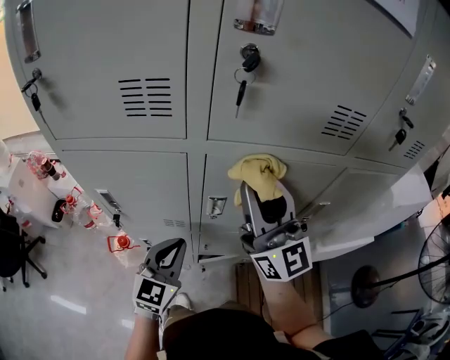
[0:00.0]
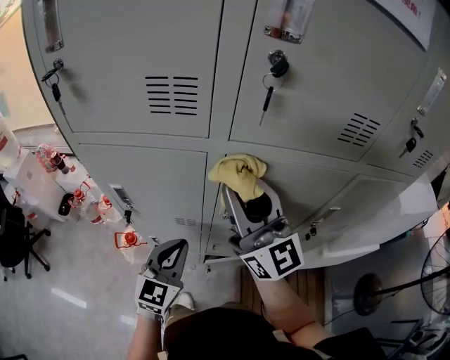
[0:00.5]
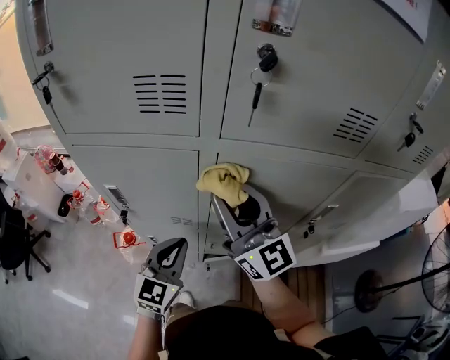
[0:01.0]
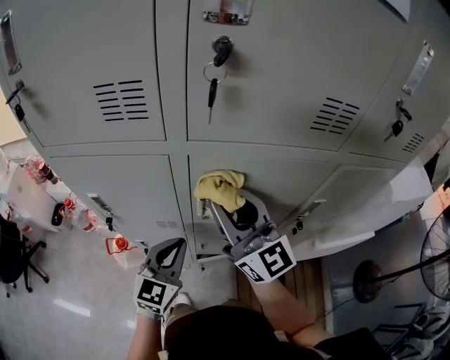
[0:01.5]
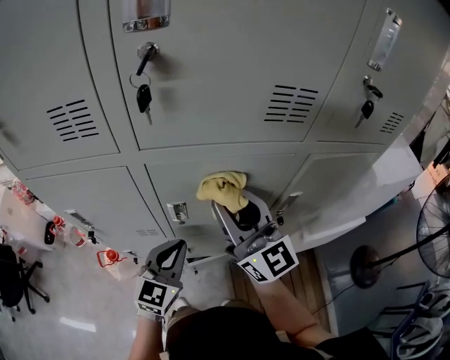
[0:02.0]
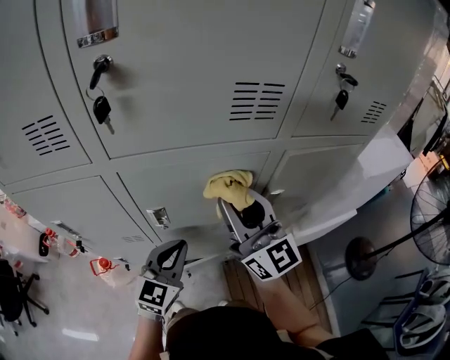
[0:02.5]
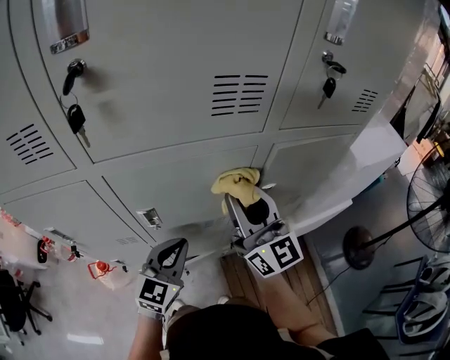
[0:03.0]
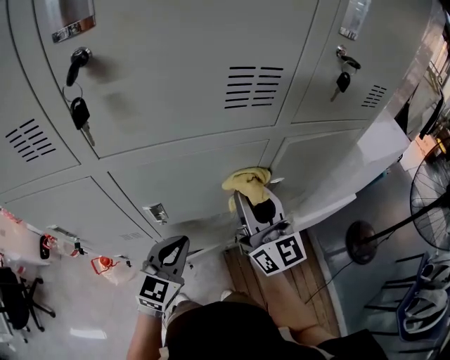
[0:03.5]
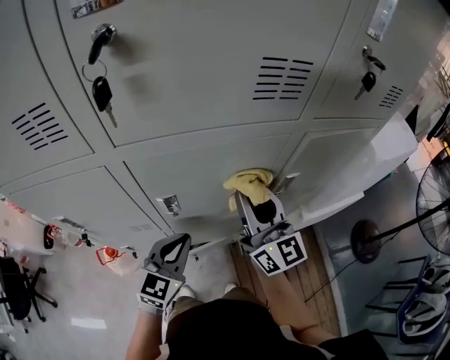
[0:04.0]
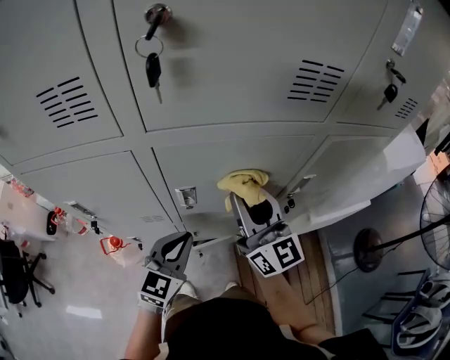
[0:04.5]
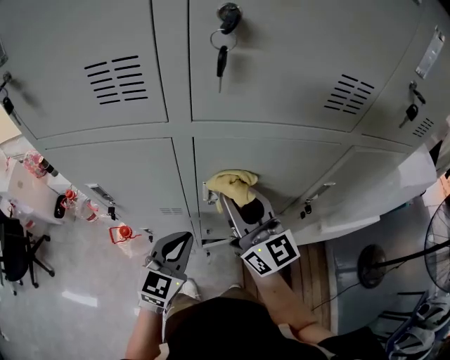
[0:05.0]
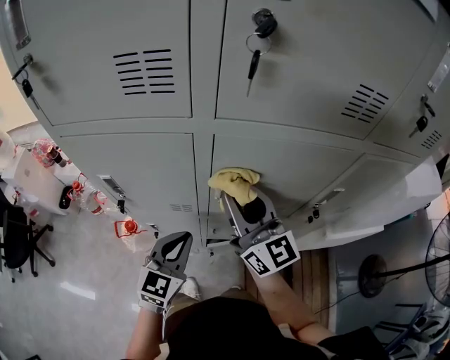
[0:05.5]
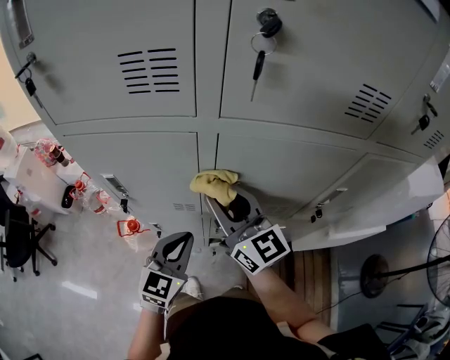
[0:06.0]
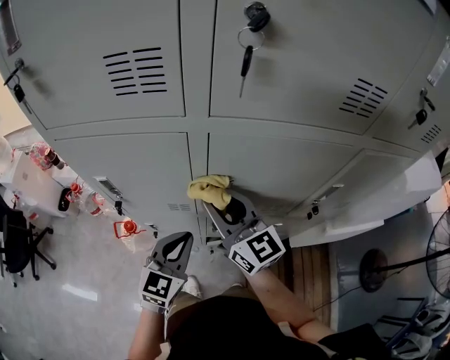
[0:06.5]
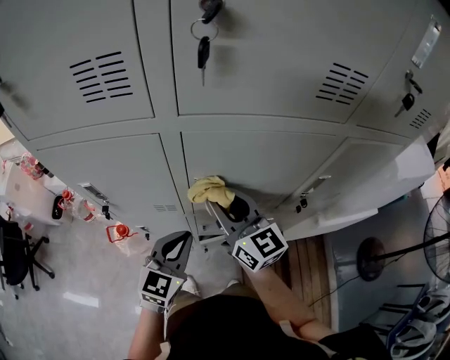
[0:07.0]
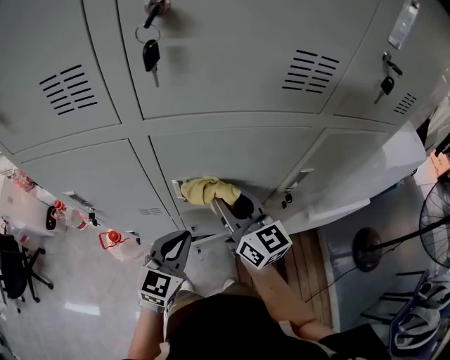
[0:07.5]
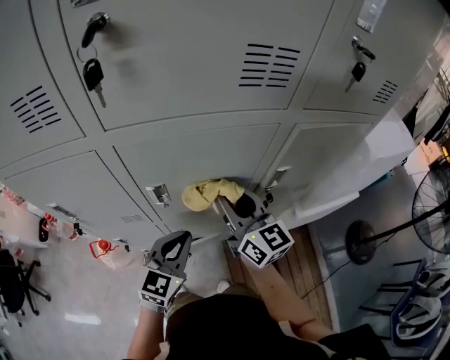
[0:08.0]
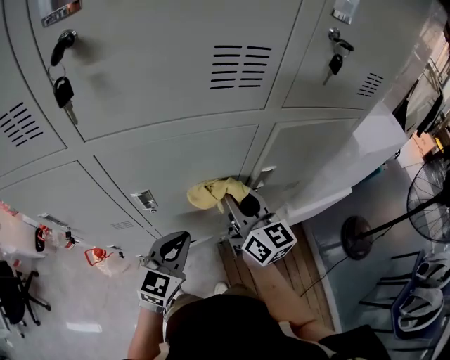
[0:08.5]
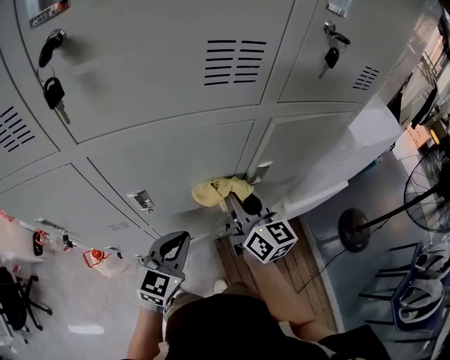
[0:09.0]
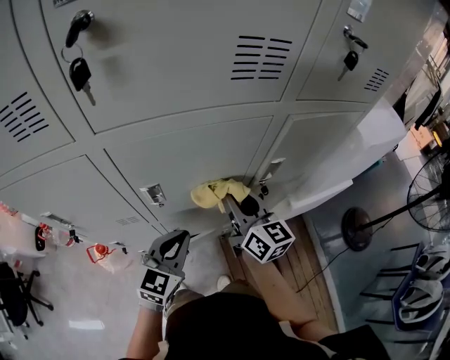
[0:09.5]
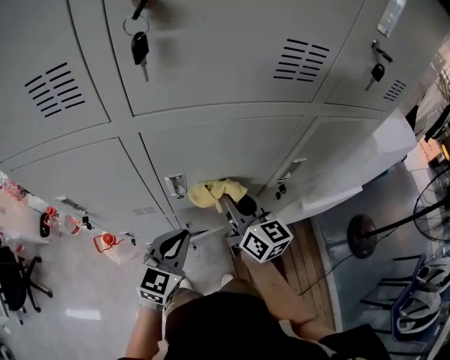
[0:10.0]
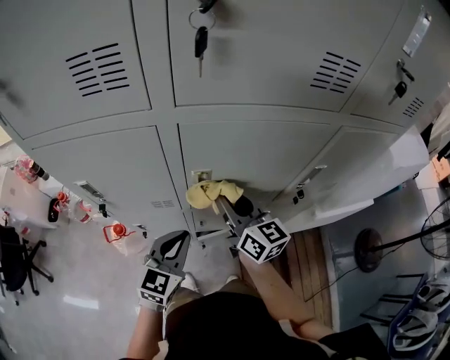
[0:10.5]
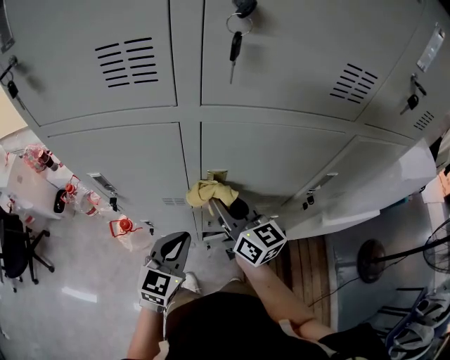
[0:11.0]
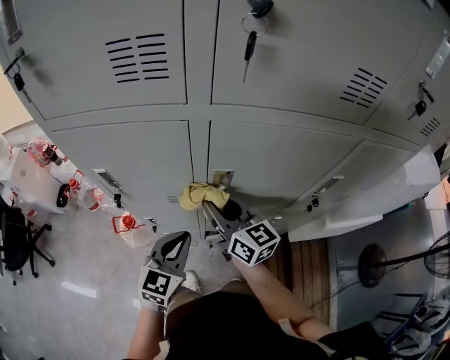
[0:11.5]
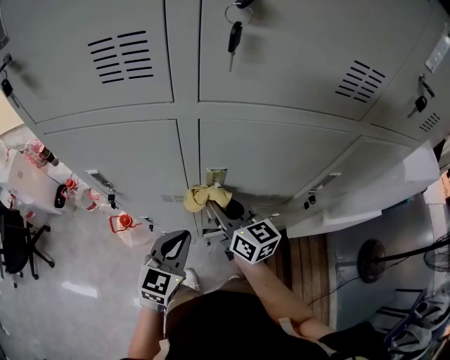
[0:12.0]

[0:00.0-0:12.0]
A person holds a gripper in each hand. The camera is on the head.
0:00.0 to 0:02.0: The right gripper heads downward, covering approximately 5 cm, and goes to the left and returns, some 5 cm each way. Meanwhile the left gripper shifts approximately 10 cm to the right.
0:02.0 to 0:04.0: The right gripper heads to the right and downward, covering approximately 10 cm.
0:04.0 to 0:06.0: The left gripper goes some 10 cm to the left; the right gripper is displaced to the left by roughly 20 cm, and changes its angle by some 30 degrees.
0:06.0 to 0:08.0: Both grippers travel together to the right, roughly 15 cm.
0:08.0 to 0:10.0: The right gripper reaches roughly 5 cm to the right, then returns. Meanwhile the left gripper ends up some 5 cm from where it was.
0:10.0 to 0:12.0: The left gripper heads to the left, covering some 5 cm. The right gripper travels to the left by roughly 10 cm.

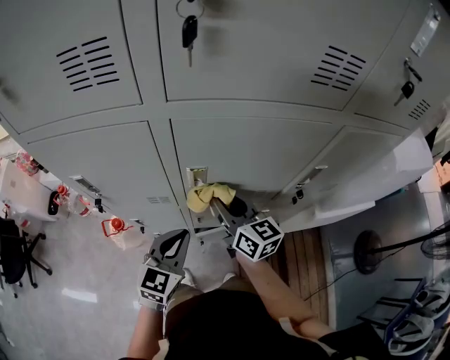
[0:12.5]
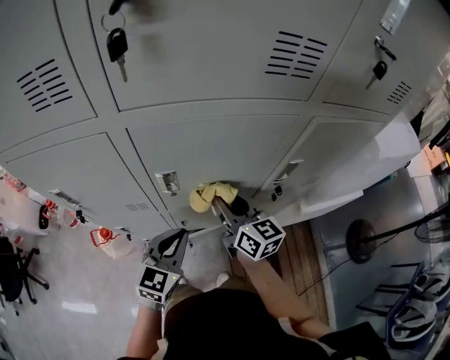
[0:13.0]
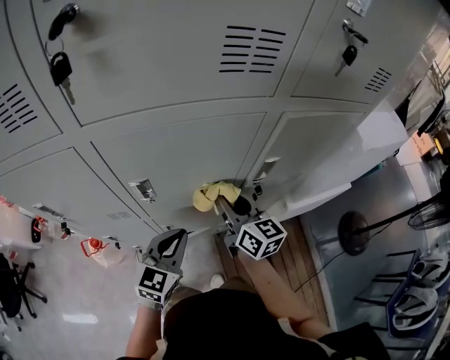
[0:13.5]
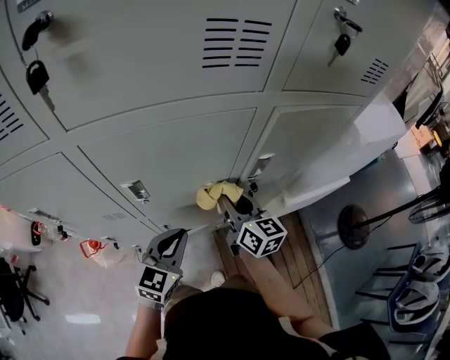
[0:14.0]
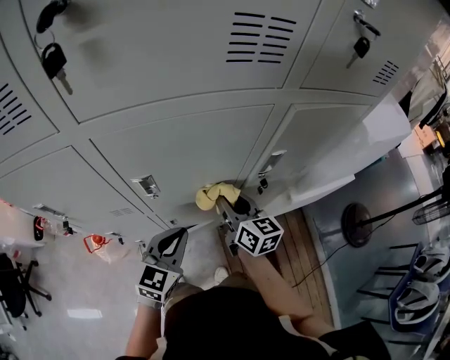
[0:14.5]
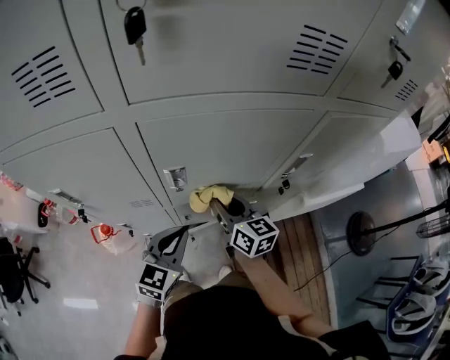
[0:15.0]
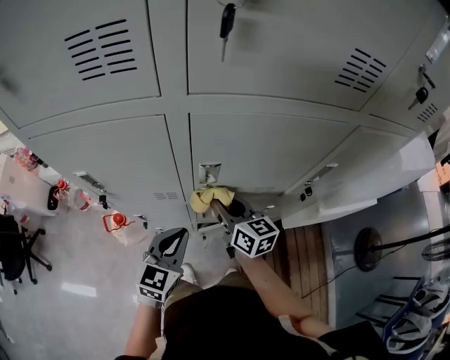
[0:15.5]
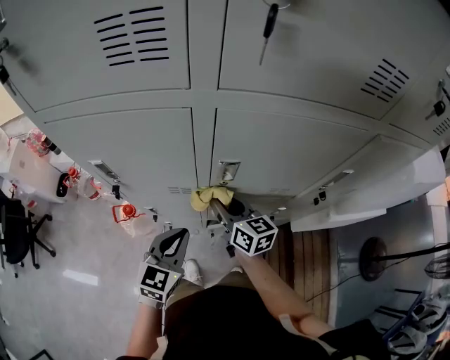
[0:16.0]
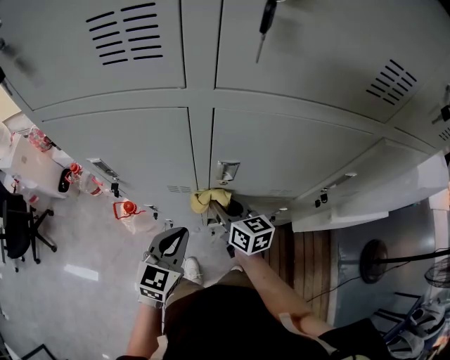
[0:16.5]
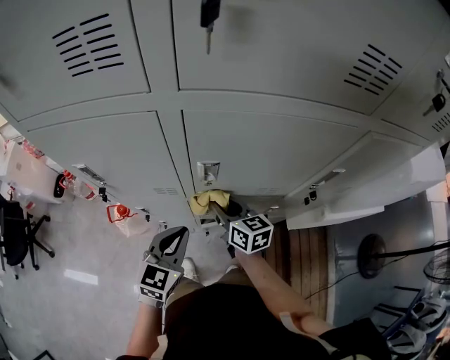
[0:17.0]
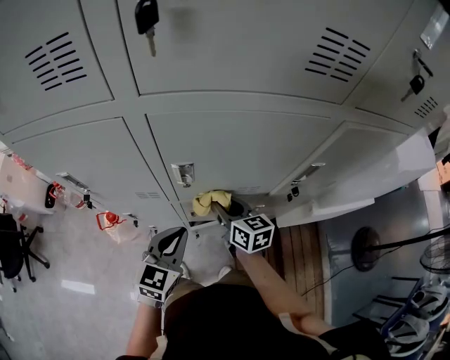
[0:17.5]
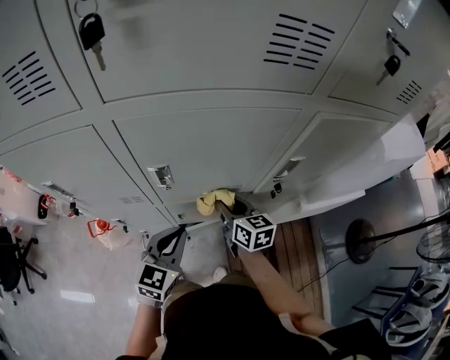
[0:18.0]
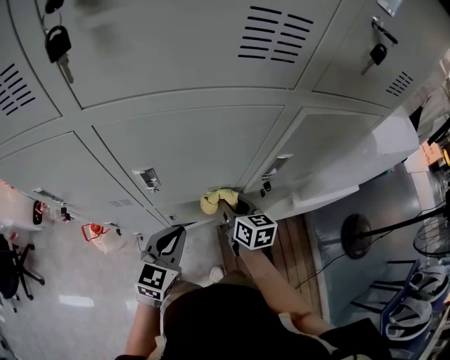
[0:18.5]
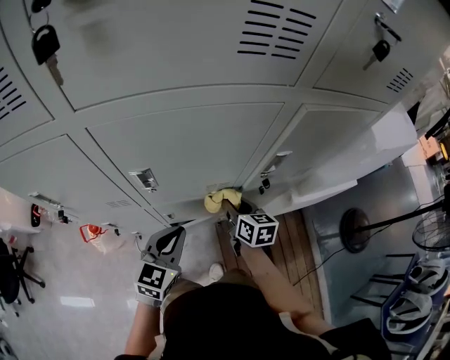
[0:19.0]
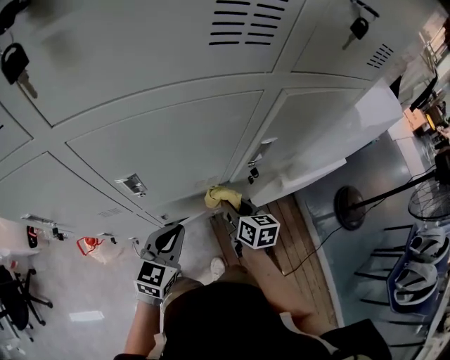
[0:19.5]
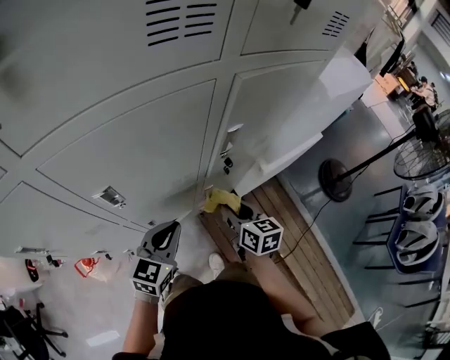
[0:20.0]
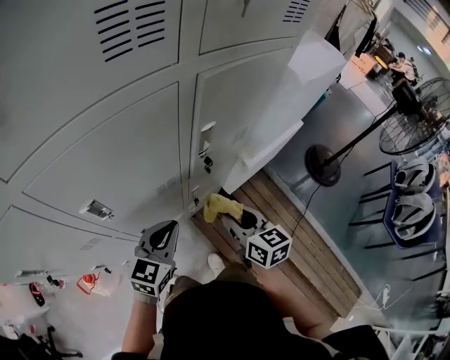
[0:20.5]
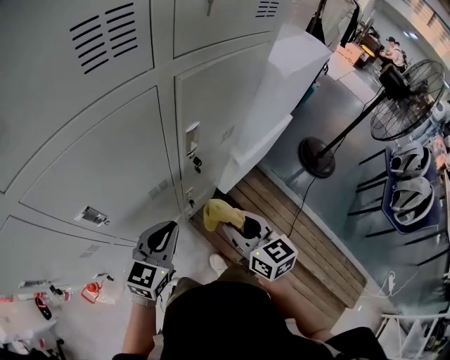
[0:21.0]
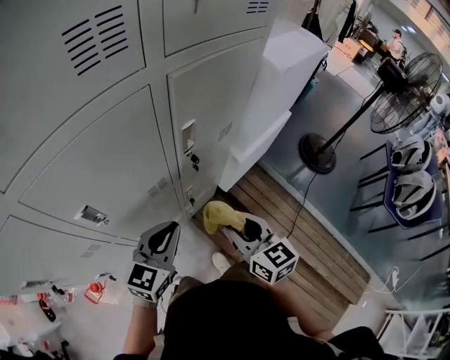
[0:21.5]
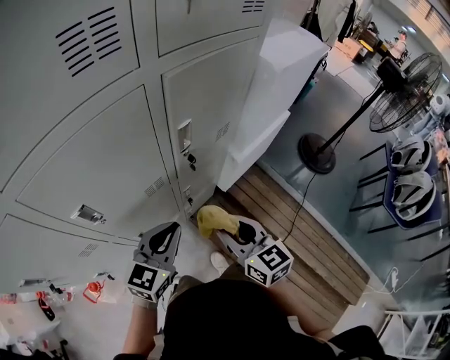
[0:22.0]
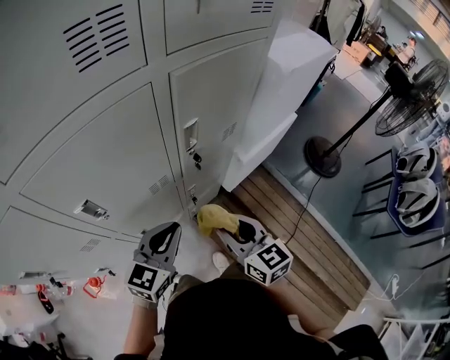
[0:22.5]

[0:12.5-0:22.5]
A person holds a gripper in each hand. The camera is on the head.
0:12.5 to 0:14.5: The grippers both shift to the right by some 10 cm.
0:14.5 to 0:16.5: The grippers both shift to the left by approximately 20 cm. The right gripper changes its angle by roughly 20 degrees.
0:16.5 to 0:18.5: Both grippers travel together to the right, roughly 20 cm.
0:18.5 to 0:20.5: The left gripper is displaced to the right by approximately 5 cm, and rotates roughly 30 degrees. The right gripper travels to the right and backward by roughly 15 cm, and swivels about 20 degrees.
0:20.5 to 0:22.5: The right gripper goes approximately 5 cm backward. The left gripper ends up some 5 cm from where it was.

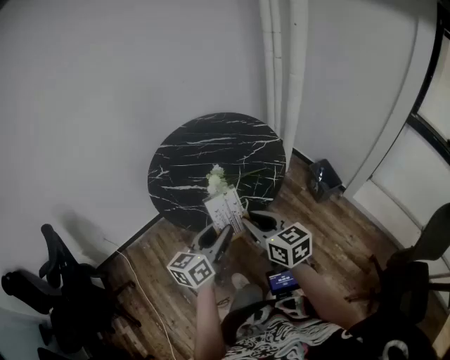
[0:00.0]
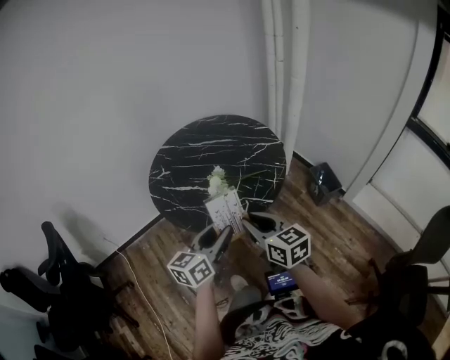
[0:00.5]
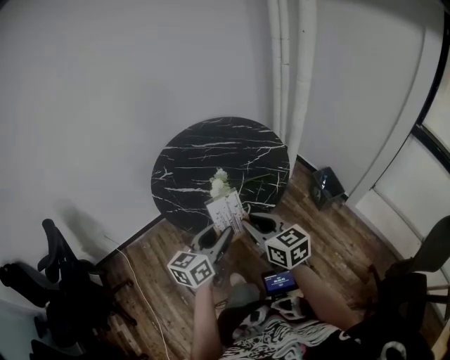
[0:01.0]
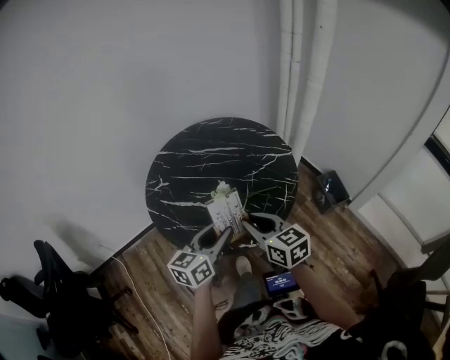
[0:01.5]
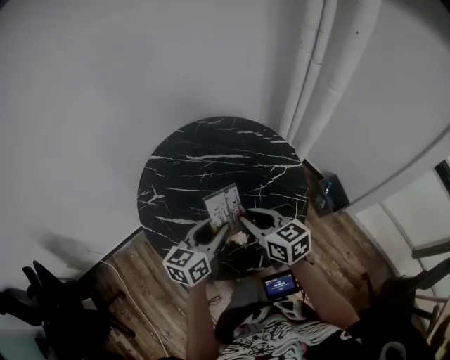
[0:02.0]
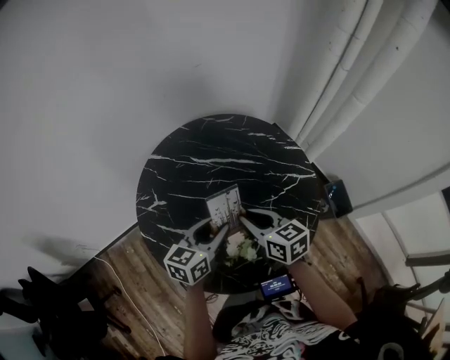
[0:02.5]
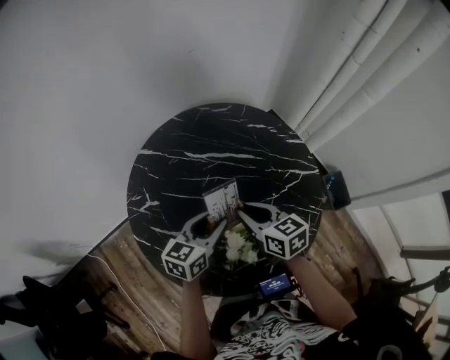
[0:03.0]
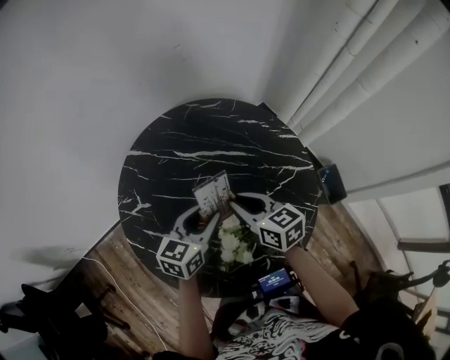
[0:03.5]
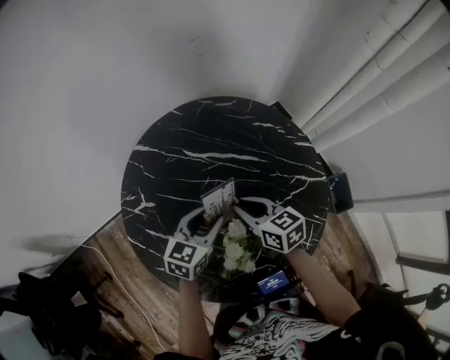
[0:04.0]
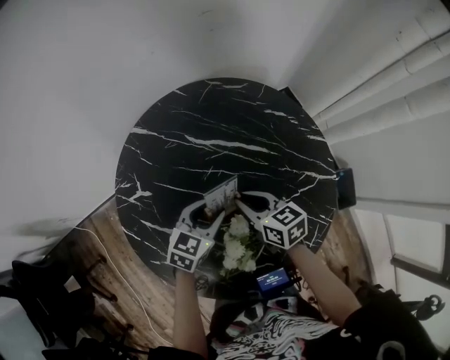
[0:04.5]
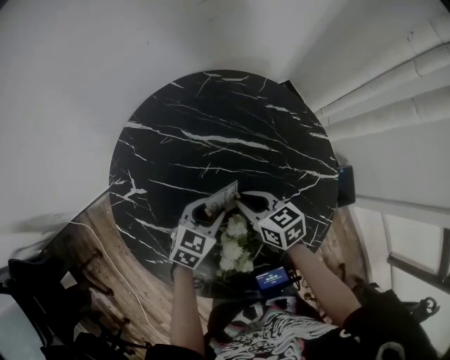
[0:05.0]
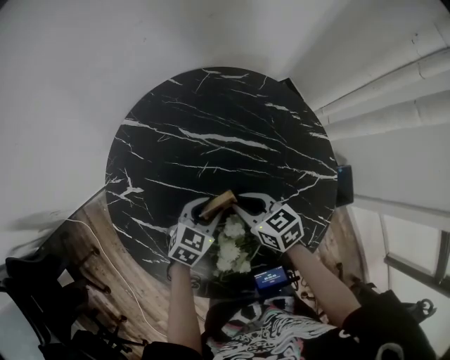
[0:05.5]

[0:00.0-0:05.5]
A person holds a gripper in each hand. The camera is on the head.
0:00.0 to 0:02.0: The two grippers go some 25 cm forward.
0:02.0 to 0:03.5: The two grippers go roughly 15 cm forward and downward.
0:03.5 to 0:05.5: The grippers both shift downward by approximately 15 cm. The left gripper swivels some 30 degrees.
